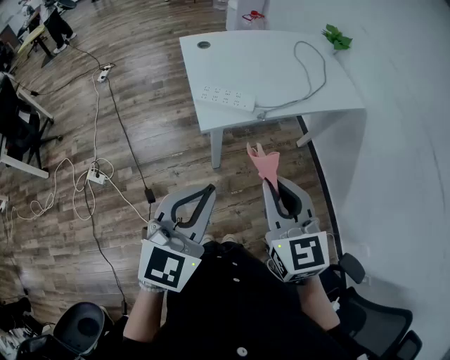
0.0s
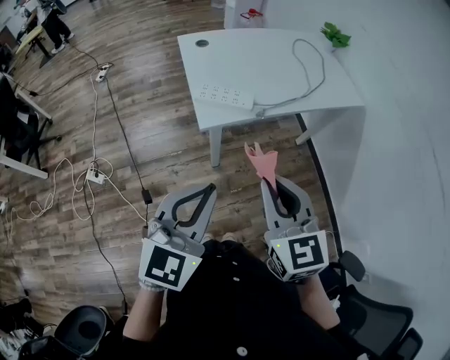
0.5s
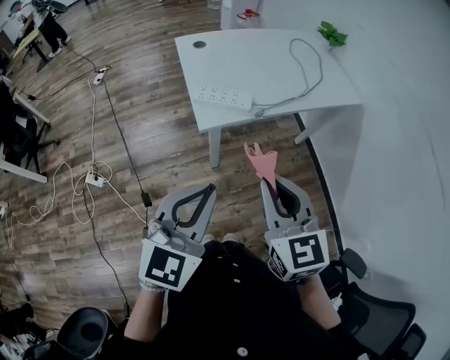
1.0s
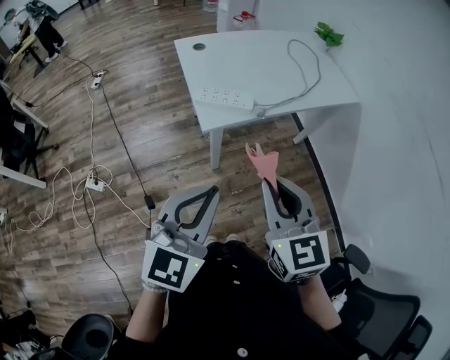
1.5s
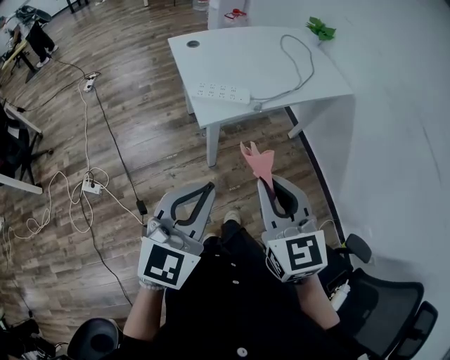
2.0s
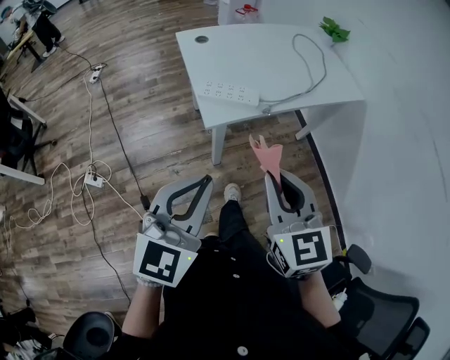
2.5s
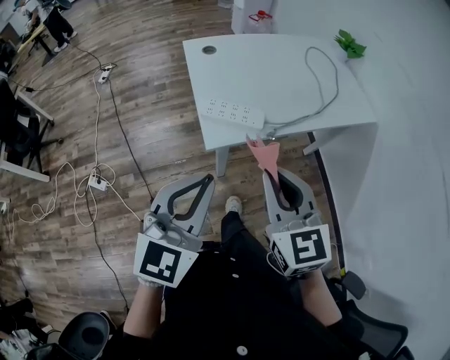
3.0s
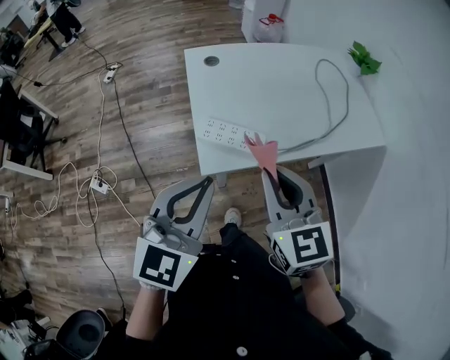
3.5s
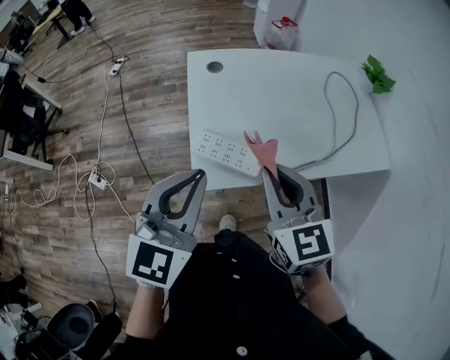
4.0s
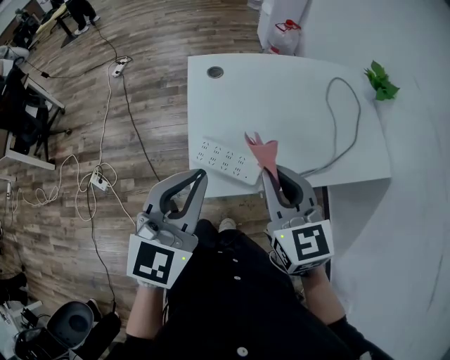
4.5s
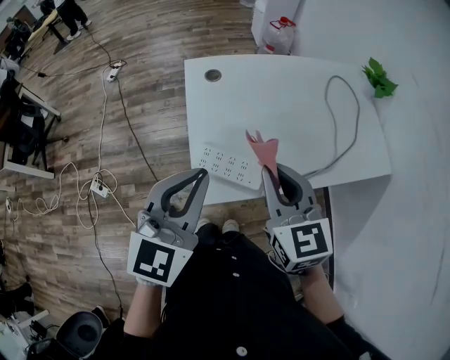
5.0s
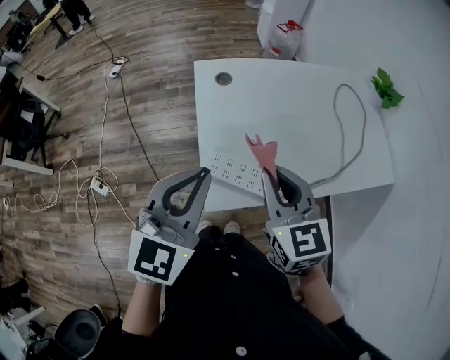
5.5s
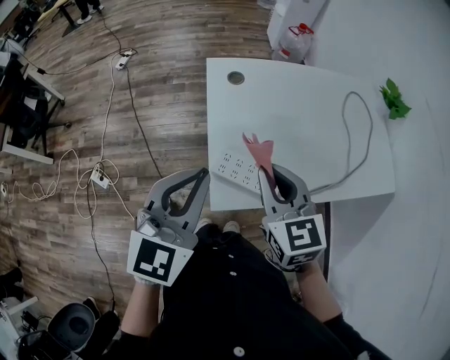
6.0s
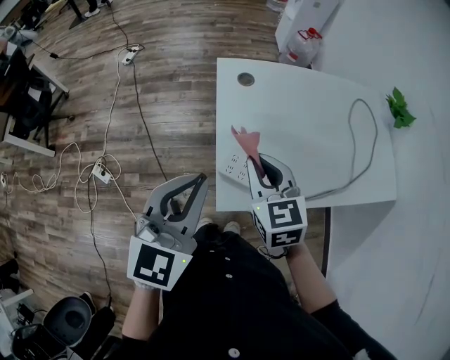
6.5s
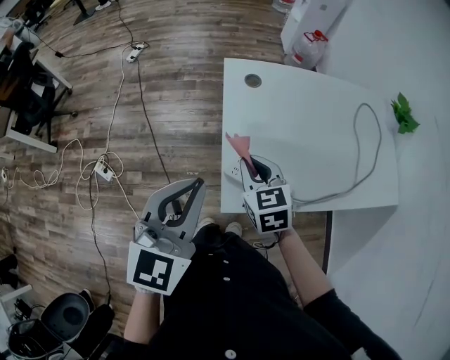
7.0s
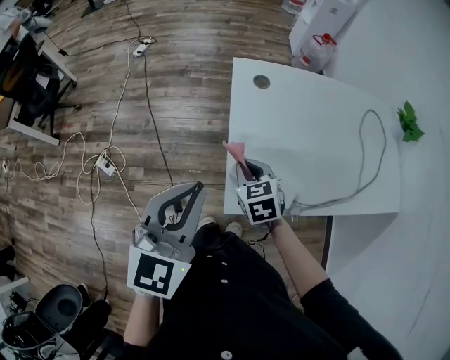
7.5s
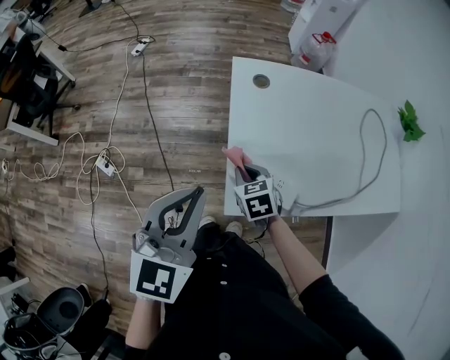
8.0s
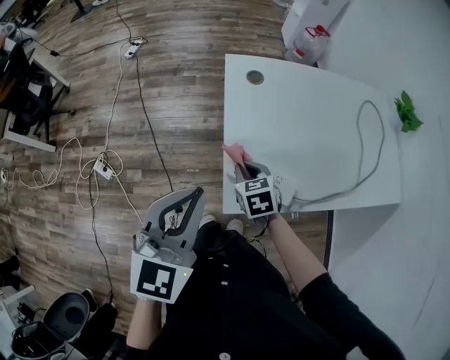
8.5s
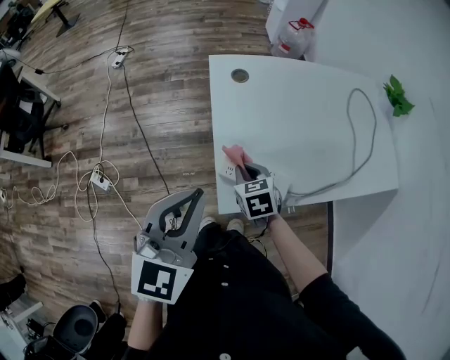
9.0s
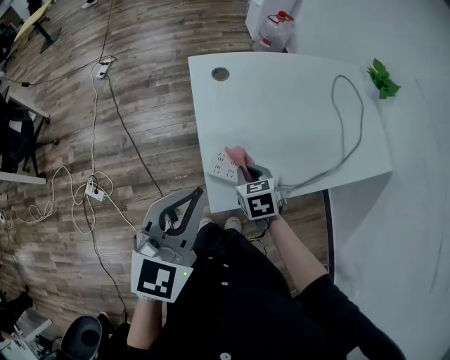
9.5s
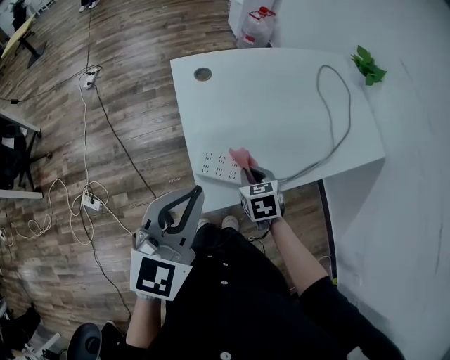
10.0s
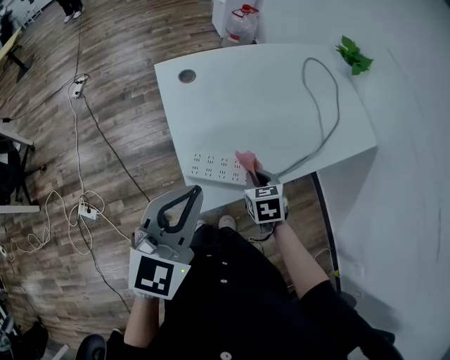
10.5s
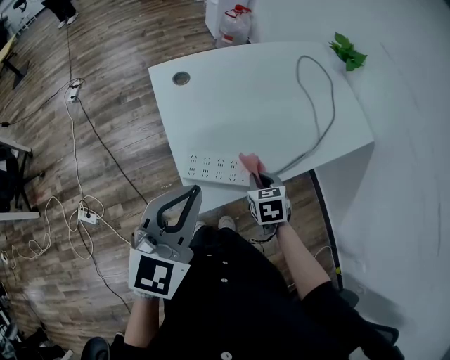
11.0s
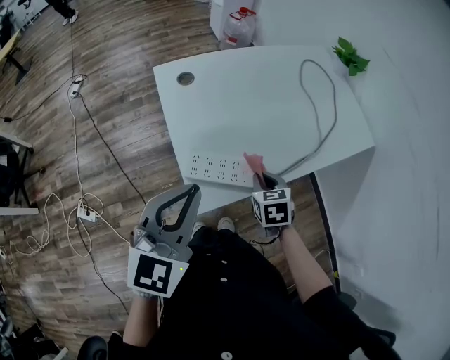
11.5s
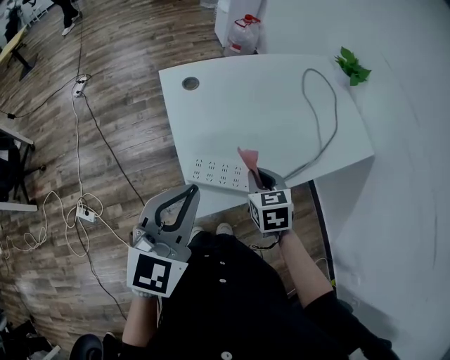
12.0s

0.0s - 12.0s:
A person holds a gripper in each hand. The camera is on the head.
0.0s - 2.0s: The right gripper shifts by approximately 5 cm.
2.0s - 4.0s: Both grippers travel together forward, about 35 cm.
4.0s - 6.0s: Both grippers travel together forward and to the left, approximately 10 cm.
6.0s - 8.0s: The right gripper is displaced downward and to the left by some 20 cm, and rotates about 30 degrees. Meanwhile the left gripper travels to the left by some 5 cm.
8.0s - 10.0s: The right gripper shifts some 15 cm to the right, and swivels roughly 20 degrees, while the left gripper is displaced to the right by approximately 10 cm.
10.0s - 12.0s: The right gripper moves upward, roughly 5 cm.

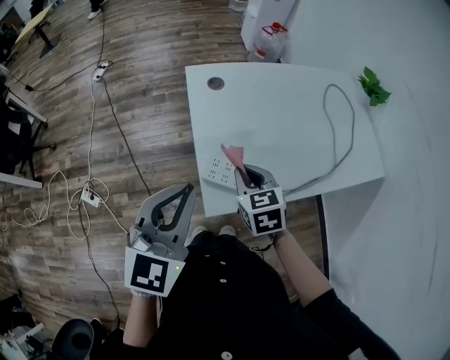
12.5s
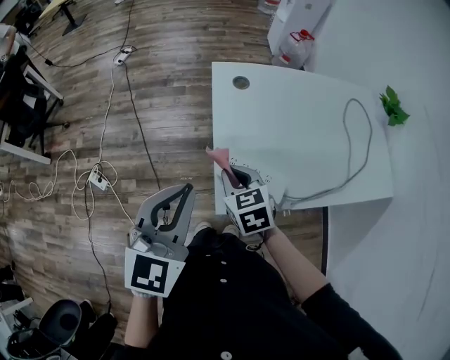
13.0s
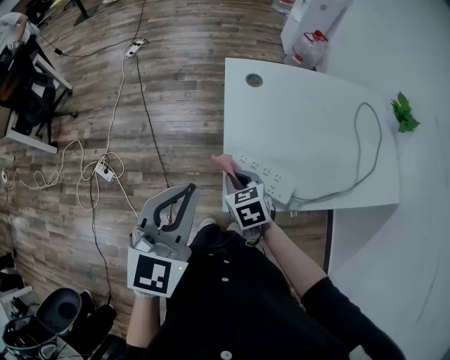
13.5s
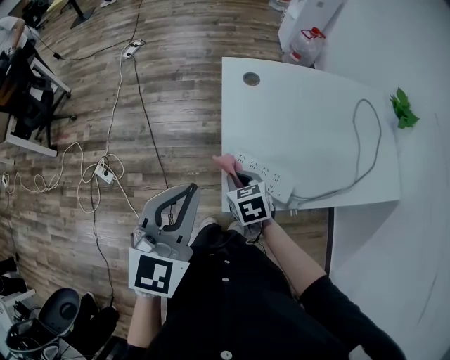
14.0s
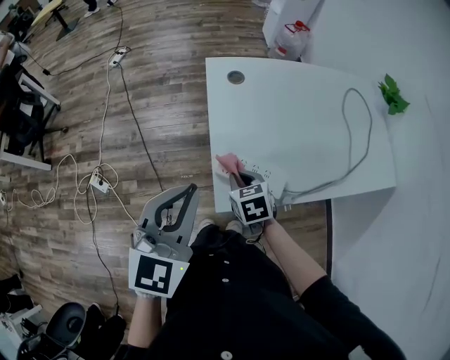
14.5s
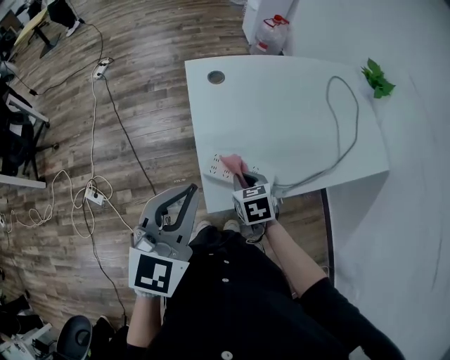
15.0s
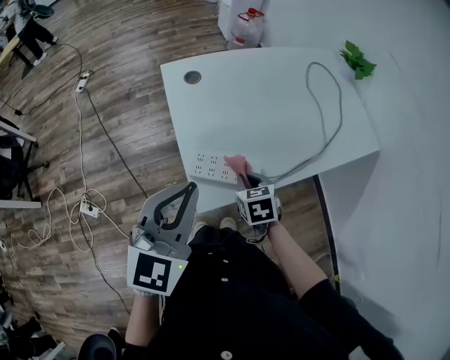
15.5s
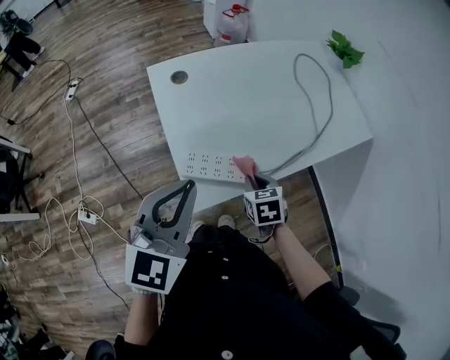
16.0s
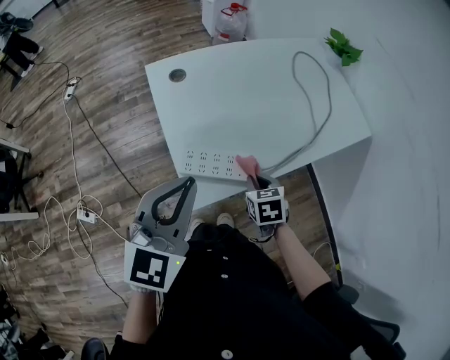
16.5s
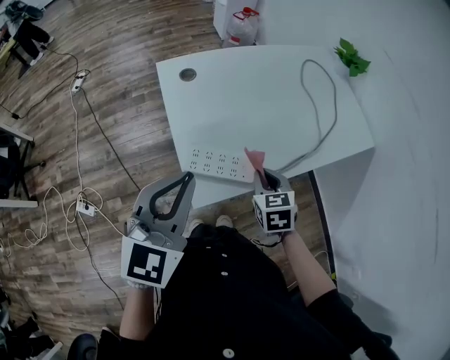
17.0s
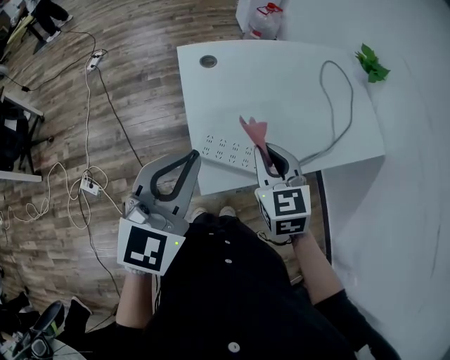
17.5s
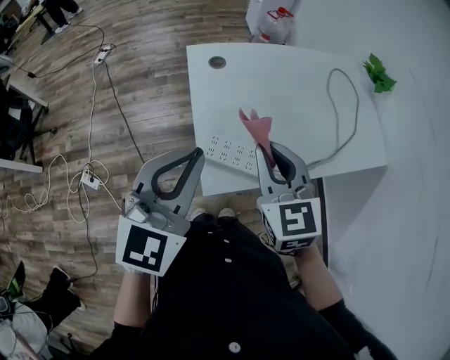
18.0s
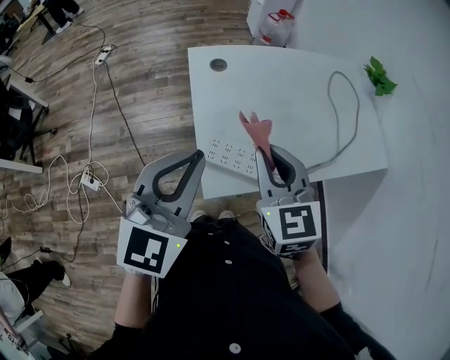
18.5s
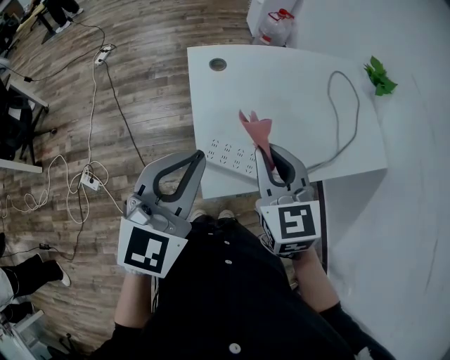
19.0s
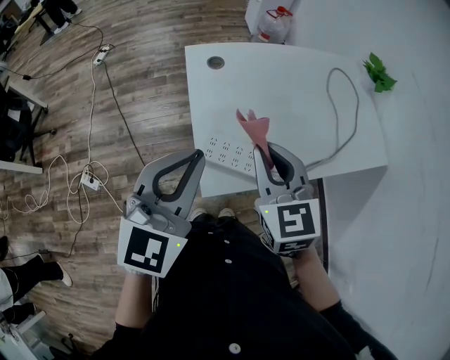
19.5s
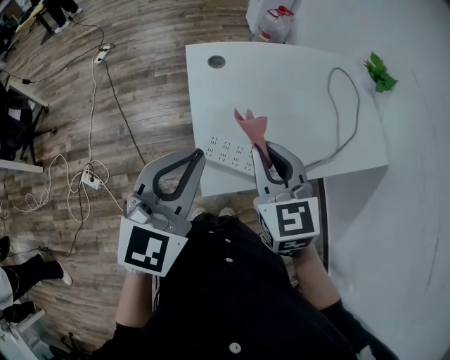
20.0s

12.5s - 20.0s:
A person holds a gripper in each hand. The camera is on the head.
12.5s - 14.5s: The right gripper shifts approximately 10 cm downward and to the left.
14.5s - 16.5s: The left gripper moves to the right, roughly 10 cm, while the right gripper travels to the right by some 20 cm, and turns by roughly 20 degrees.
16.5s - 18.0s: The left gripper changes place by approximately 5 cm. Meanwhile the right gripper travels upward and to the left by about 25 cm, and tilts its fingers roughly 30 degrees upward.
18.0s - 20.0s: Both grippers stay about where they are.

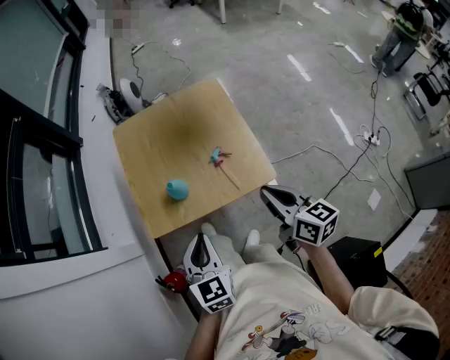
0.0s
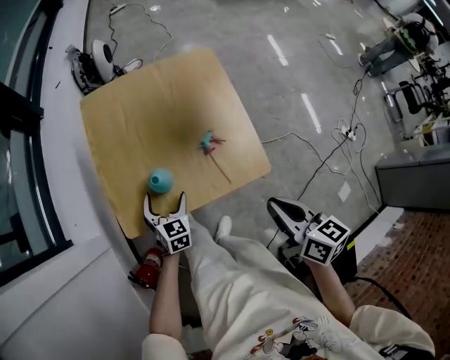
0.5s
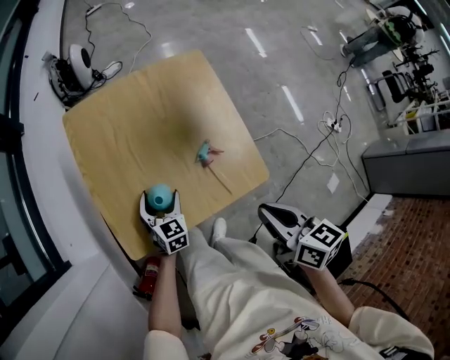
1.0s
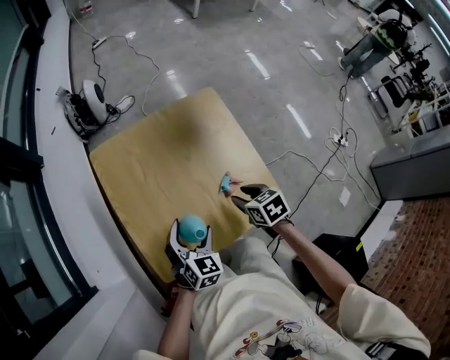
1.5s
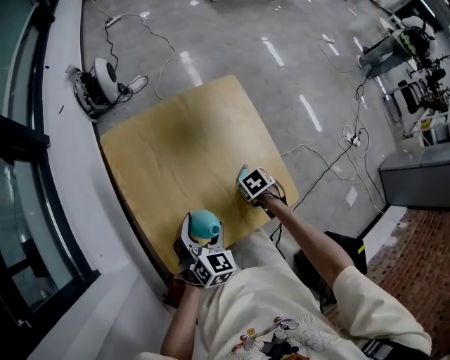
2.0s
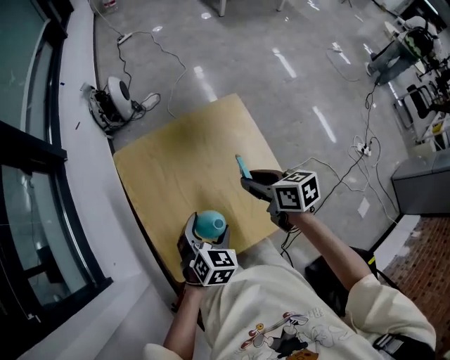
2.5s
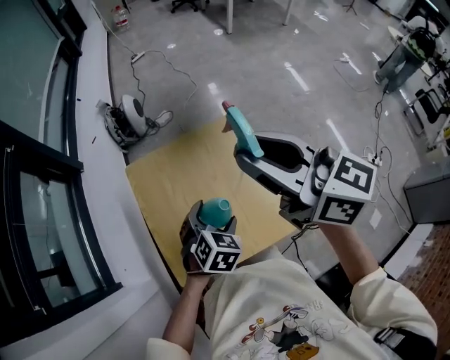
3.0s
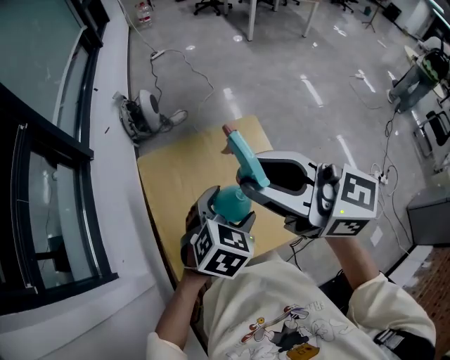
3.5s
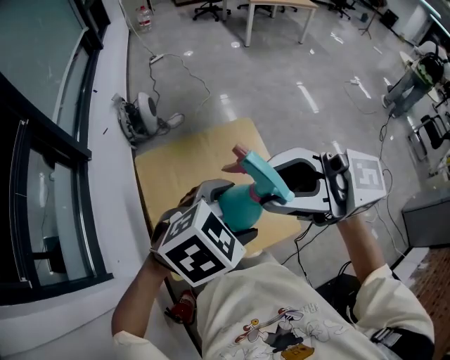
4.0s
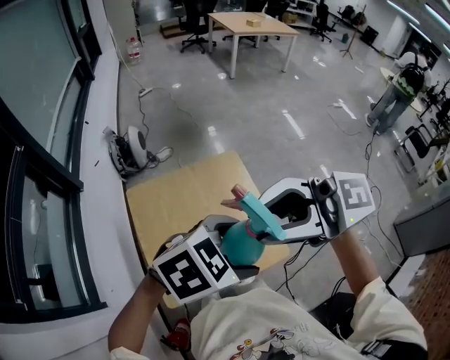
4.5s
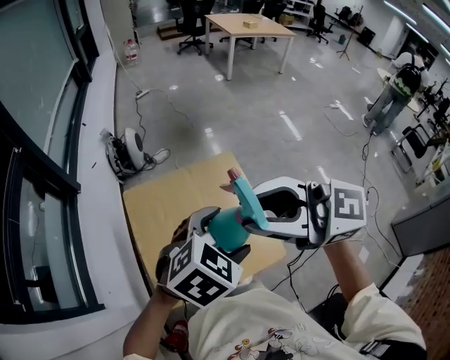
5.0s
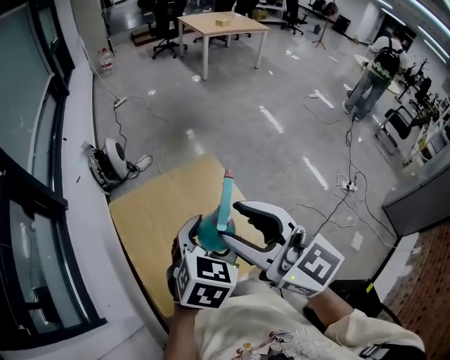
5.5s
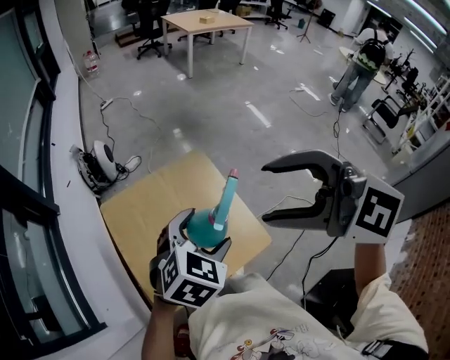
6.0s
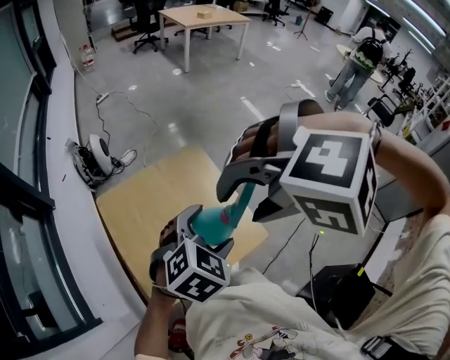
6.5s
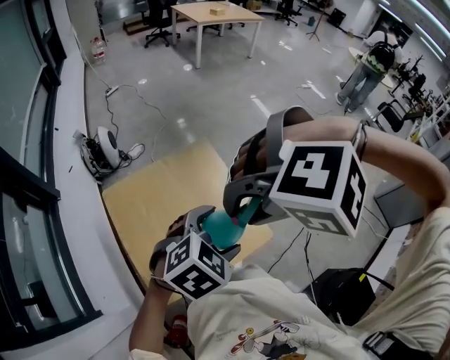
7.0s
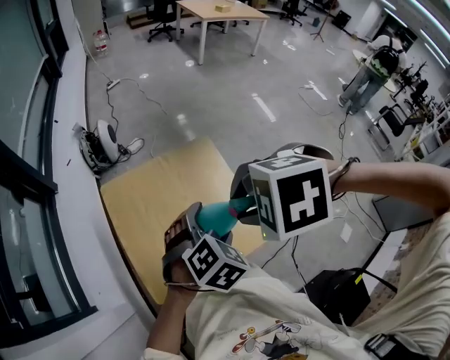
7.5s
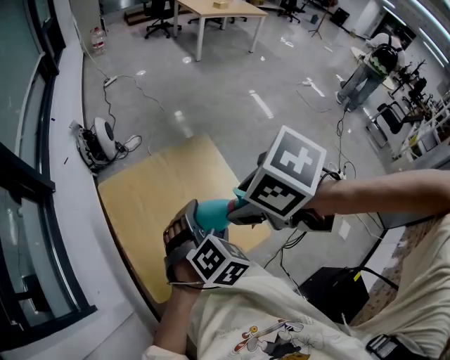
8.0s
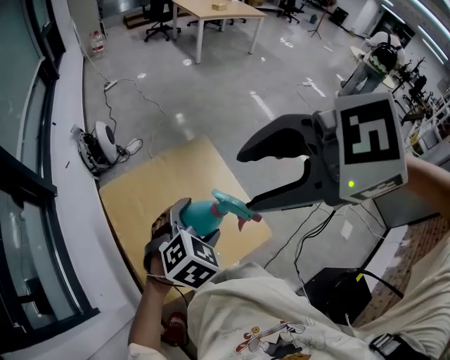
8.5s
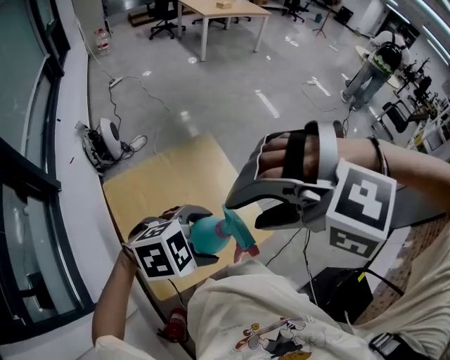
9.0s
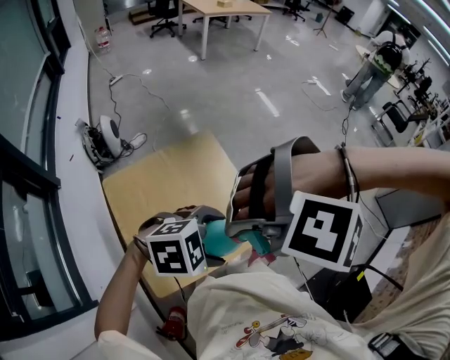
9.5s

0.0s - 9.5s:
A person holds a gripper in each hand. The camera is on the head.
0.0s - 2.0s: The left gripper moves some 35 cm, swivels about 30 degrees, and opens its fingers. The right gripper goes approximately 30 cm downward, tips its fingers downward by roughly 70 degrees, and opens up.
2.0s - 4.0s: The left gripper heads upward, covering roughly 30 cm, and turns by roughly 40 degrees; the right gripper moves upward, roughly 60 cm, and tilts its fingers about 100 degrees upward.
4.0s - 5.5s: The left gripper swivels approximately 30 degrees. The right gripper changes place by roughly 5 cm, and swivels roughly 50 degrees.
5.5s - 7.5s: The left gripper moves about 5 cm, and swivels about 20 degrees, while the right gripper shifts roughly 5 cm downward, and angles its fingers downward, by approximately 80 degrees.
7.5s - 9.5s: The right gripper moves some 10 cm upward and comes back, twists roughly 60 degrees counterclockwise, seen from behind, and opens and closes again. The left gripper shifts by some 10 cm, and changes its angle by approximately 50 degrees.
